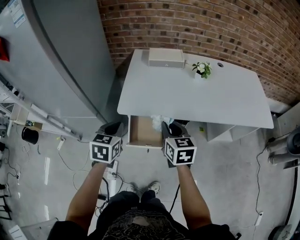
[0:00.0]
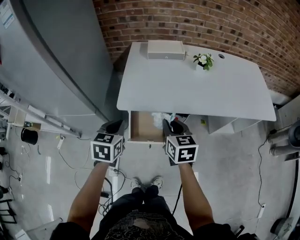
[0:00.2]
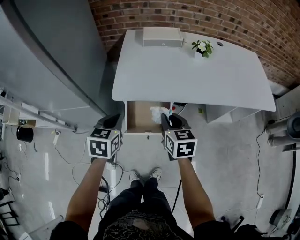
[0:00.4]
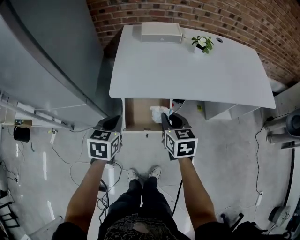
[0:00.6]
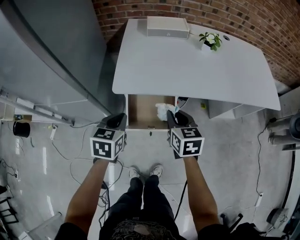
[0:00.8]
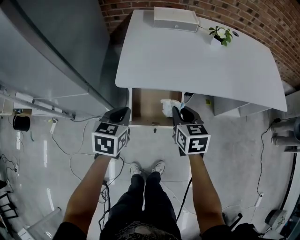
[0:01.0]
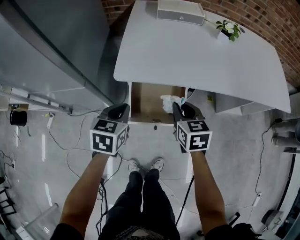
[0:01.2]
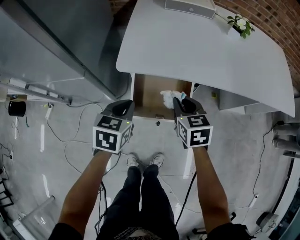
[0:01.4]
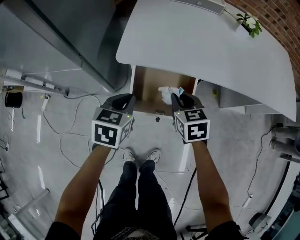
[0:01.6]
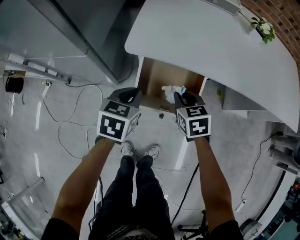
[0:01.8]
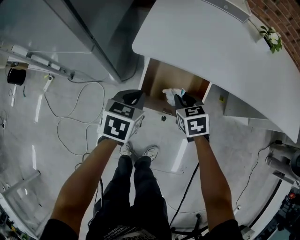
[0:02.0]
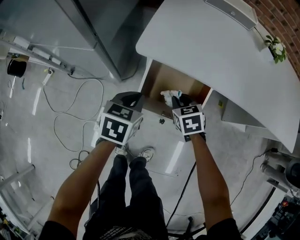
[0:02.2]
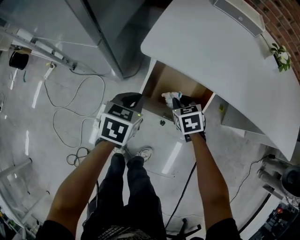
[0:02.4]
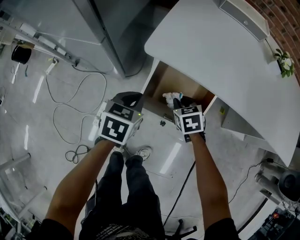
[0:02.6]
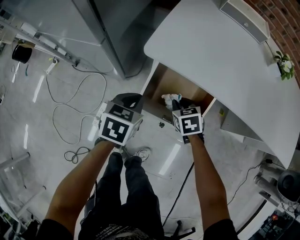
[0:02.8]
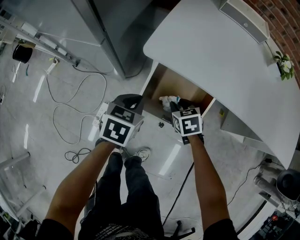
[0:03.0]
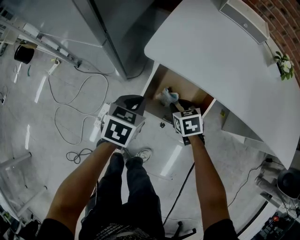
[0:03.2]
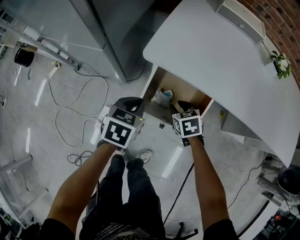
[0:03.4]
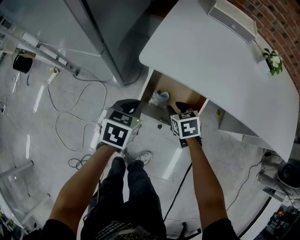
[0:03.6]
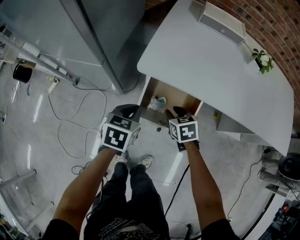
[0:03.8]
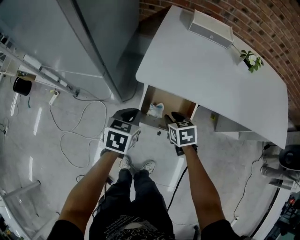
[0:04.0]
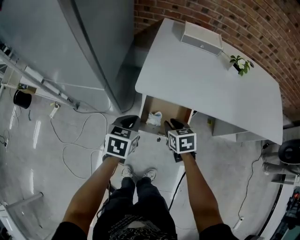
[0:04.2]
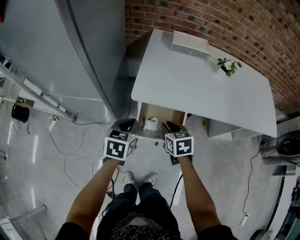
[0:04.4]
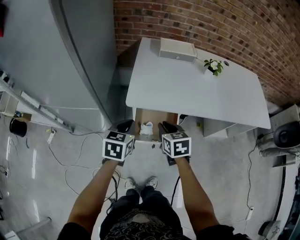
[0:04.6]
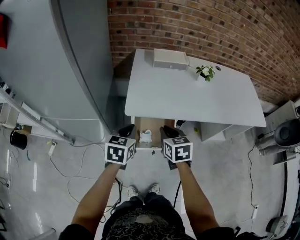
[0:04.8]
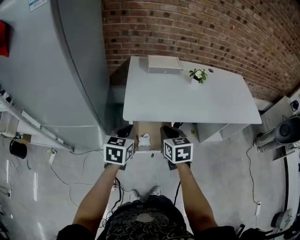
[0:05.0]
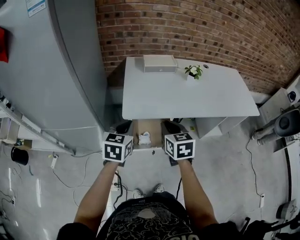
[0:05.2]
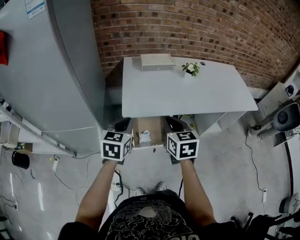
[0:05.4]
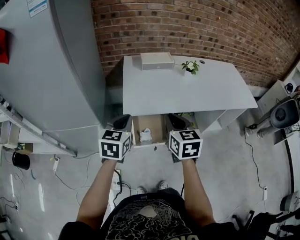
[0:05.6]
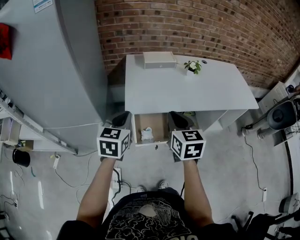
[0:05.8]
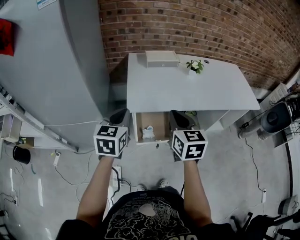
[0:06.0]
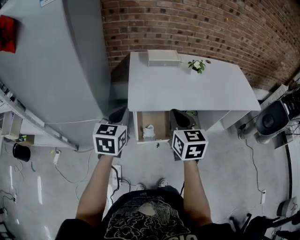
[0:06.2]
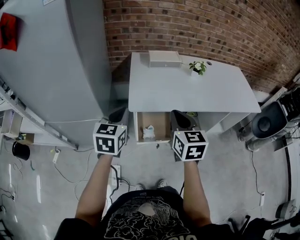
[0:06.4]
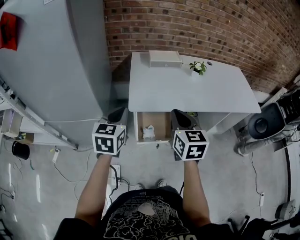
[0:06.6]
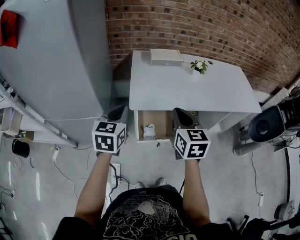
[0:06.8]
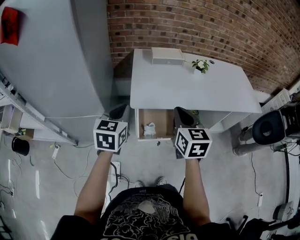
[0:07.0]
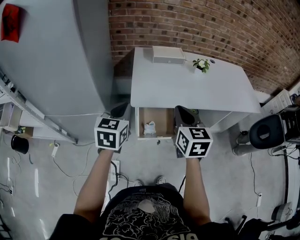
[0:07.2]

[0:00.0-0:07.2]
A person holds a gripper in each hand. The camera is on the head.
0:00.0 to 0:01.4: Both grippers move downward, approximately 20 cm.
0:01.4 to 0:02.8: The left gripper moves downward, approximately 10 cm; the right gripper goes roughly 15 cm downward, and turns by some 30 degrees.
0:02.8 to 0:04.4: The grippers both shift upward by about 20 cm. The right gripper swivels approximately 30 degrees.
0:04.4 to 0:05.8: Both grippers move upward, approximately 20 cm. The right gripper rotates approximately 30 degrees. The left gripper swivels roughly 20 degrees.
0:05.8 to 0:07.2: The grippers move only a little.

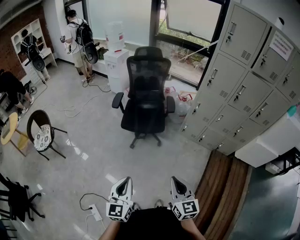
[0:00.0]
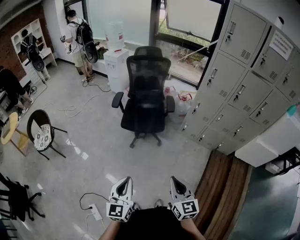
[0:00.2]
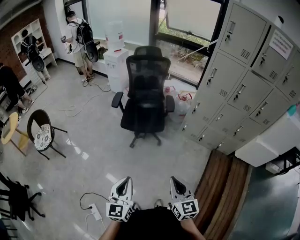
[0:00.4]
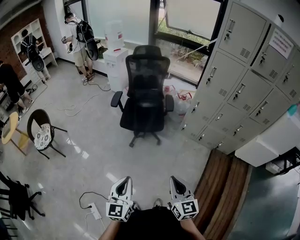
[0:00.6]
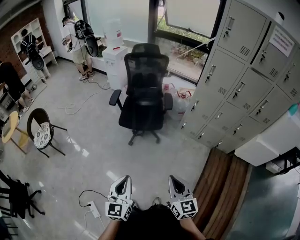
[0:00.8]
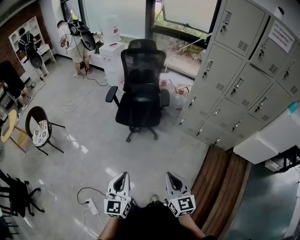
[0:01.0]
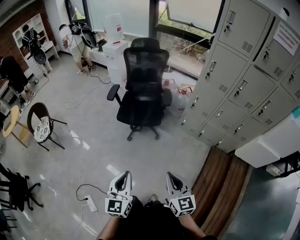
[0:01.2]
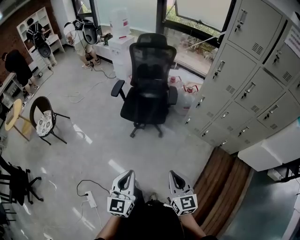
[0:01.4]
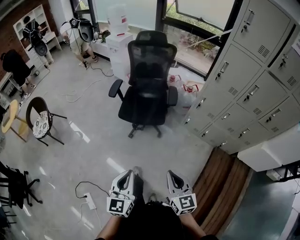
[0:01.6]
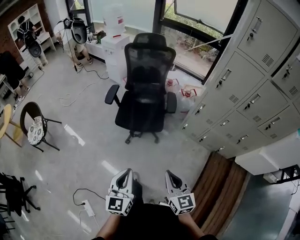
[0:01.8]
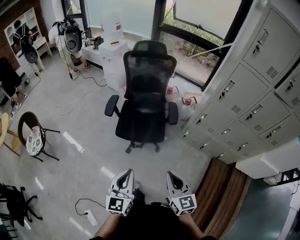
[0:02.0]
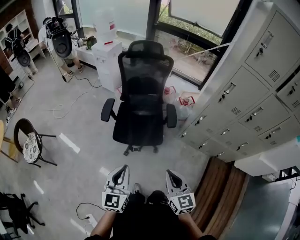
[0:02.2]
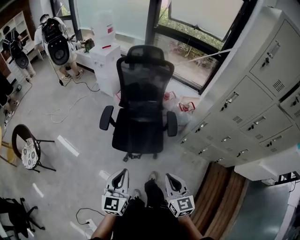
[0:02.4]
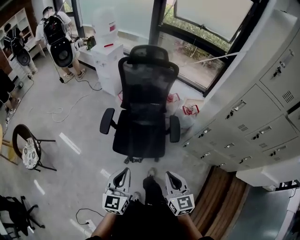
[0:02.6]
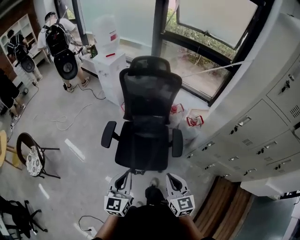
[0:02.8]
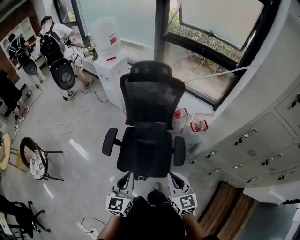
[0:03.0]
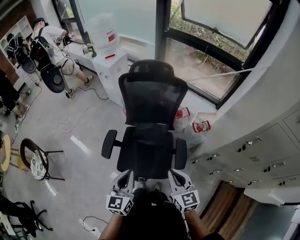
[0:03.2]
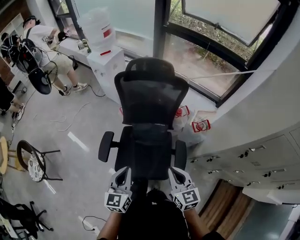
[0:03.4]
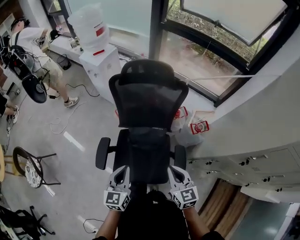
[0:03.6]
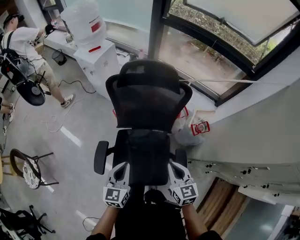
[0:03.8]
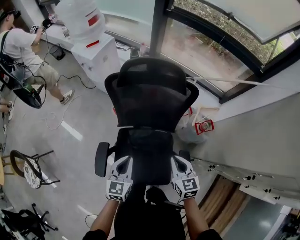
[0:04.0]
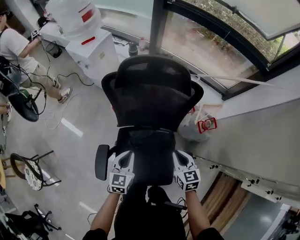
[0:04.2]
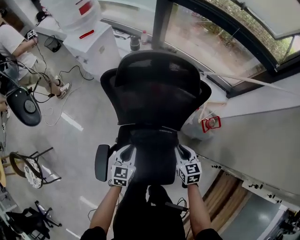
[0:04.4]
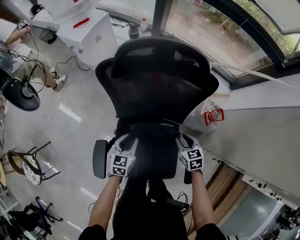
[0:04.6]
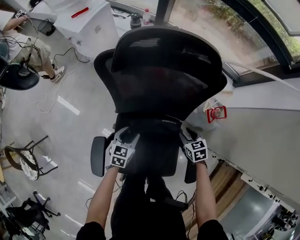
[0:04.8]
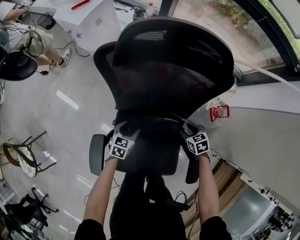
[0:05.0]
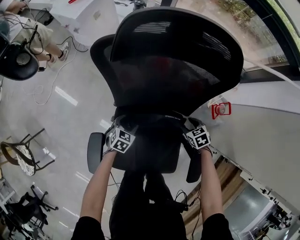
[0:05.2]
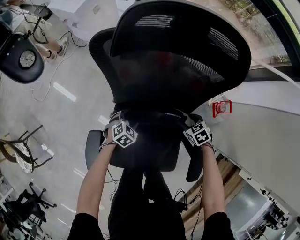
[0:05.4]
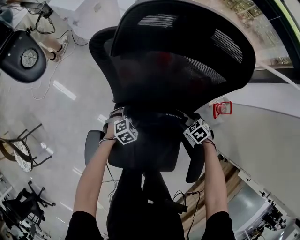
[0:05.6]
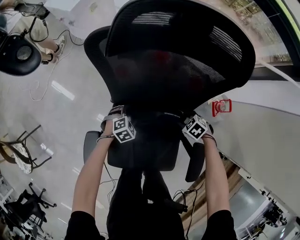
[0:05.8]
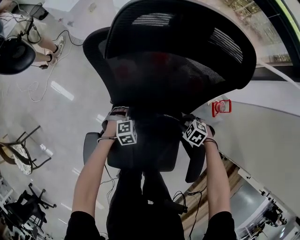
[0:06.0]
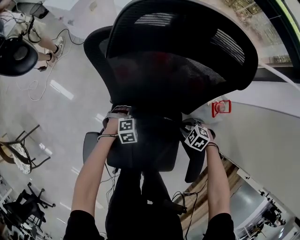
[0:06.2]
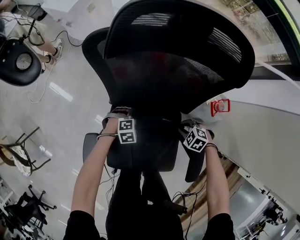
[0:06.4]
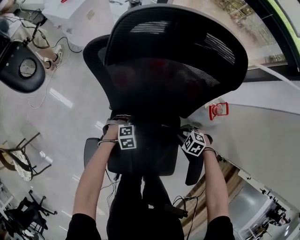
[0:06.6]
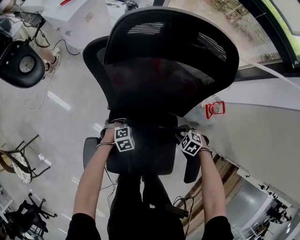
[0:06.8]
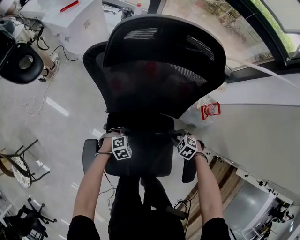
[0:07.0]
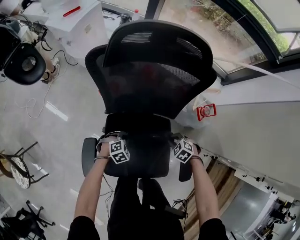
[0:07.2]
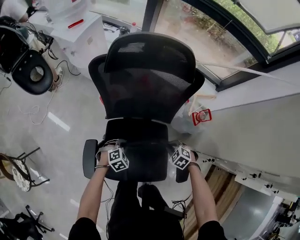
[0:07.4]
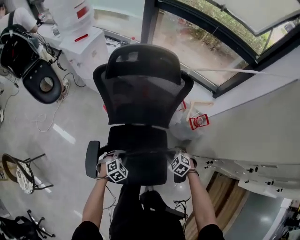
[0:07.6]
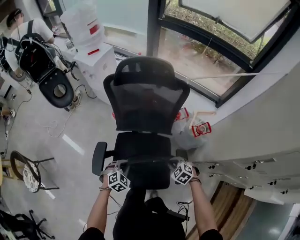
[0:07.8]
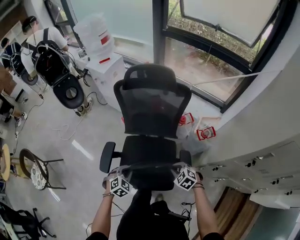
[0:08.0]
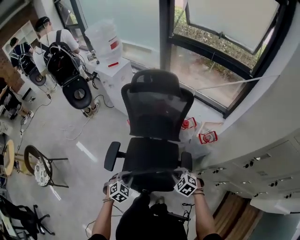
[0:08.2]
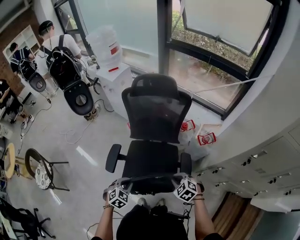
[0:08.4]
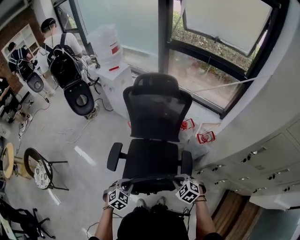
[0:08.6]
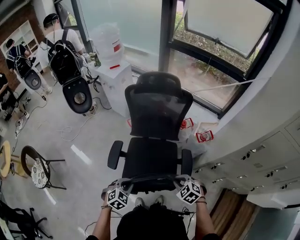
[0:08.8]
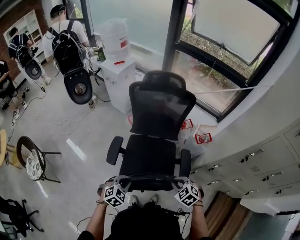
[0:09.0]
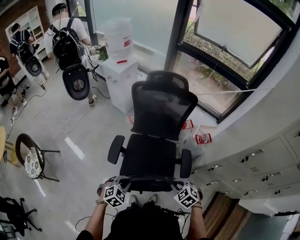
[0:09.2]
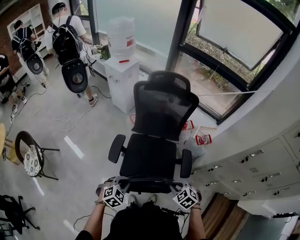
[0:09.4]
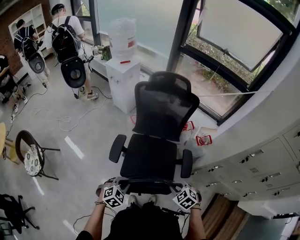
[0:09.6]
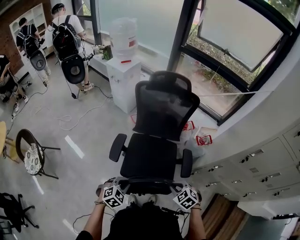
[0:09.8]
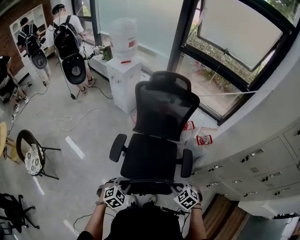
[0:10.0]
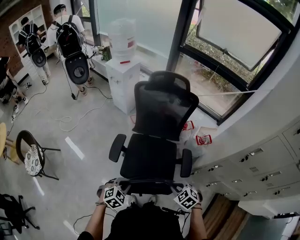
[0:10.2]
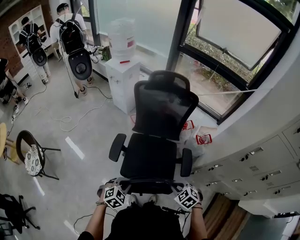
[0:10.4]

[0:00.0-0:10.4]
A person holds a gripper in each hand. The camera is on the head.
0:00.0 to 0:01.4: Both grippers move to the right, approximately 10 cm.
0:01.4 to 0:03.0: The pair of grippers is taken forward, roughly 50 cm.
0:03.0 to 0:04.4: The grippers both shift forward and downward by about 40 cm. The left gripper changes its angle by approximately 20 degrees; the right gripper turns by approximately 30 degrees.
0:04.4 to 0:06.0: The grippers both shift downward by roughly 25 cm. The left gripper points its fingers some 30 degrees further downward, and opens up, while the right gripper tilts its fingers approximately 30 degrees downward, and opens and closes again.
0:06.0 to 0:07.4: The left gripper ends up some 15 cm from where it was, and closes up; the right gripper moves some 10 cm.
0:07.4 to 0:09.0: The left gripper heads backward and upward, covering about 35 cm, and changes its angle by roughly 20 degrees. The right gripper heads upward and backward, covering roughly 35 cm.
0:09.0 to 0:10.4: There are only small adjustments of the grippers.

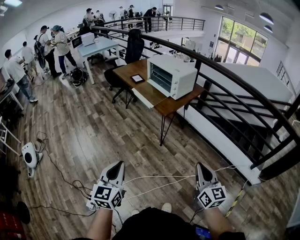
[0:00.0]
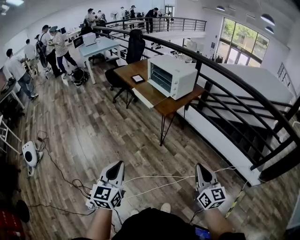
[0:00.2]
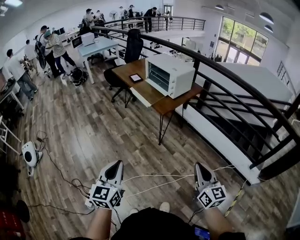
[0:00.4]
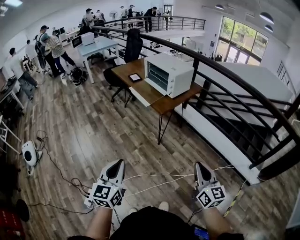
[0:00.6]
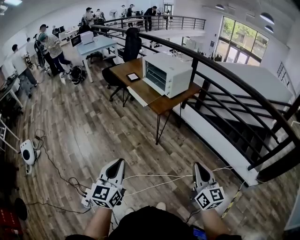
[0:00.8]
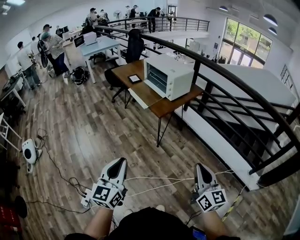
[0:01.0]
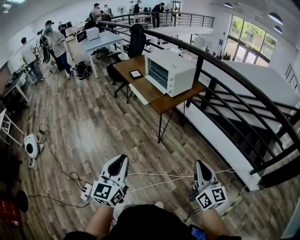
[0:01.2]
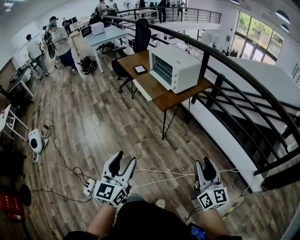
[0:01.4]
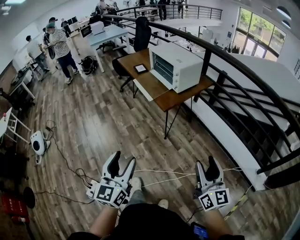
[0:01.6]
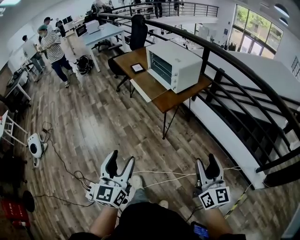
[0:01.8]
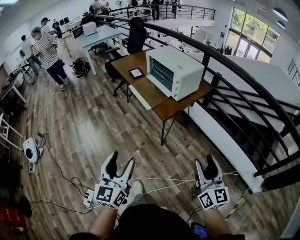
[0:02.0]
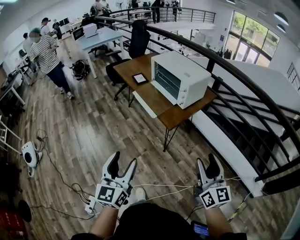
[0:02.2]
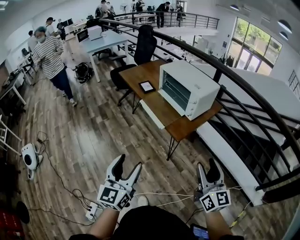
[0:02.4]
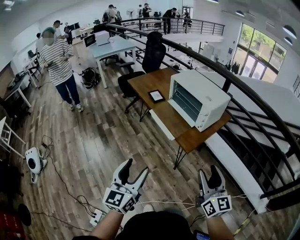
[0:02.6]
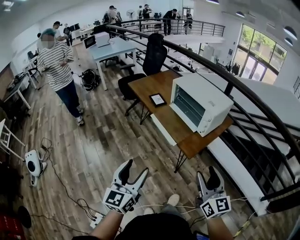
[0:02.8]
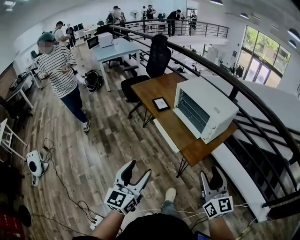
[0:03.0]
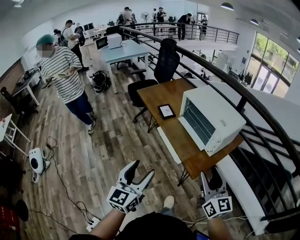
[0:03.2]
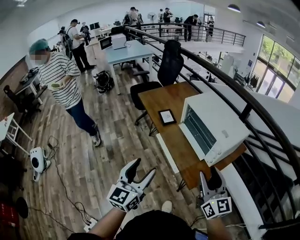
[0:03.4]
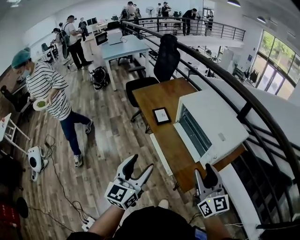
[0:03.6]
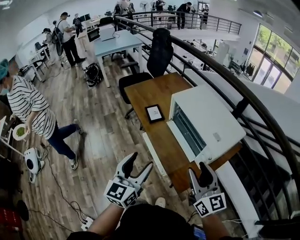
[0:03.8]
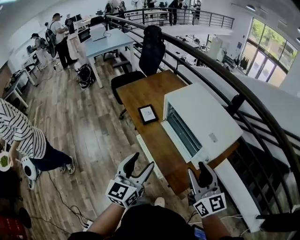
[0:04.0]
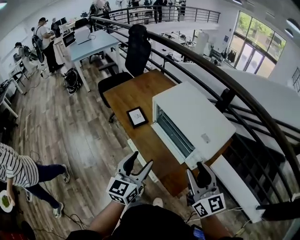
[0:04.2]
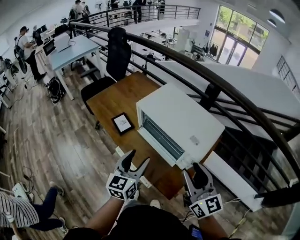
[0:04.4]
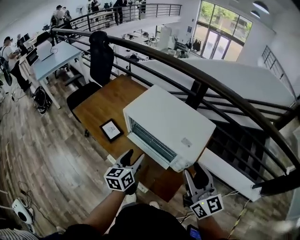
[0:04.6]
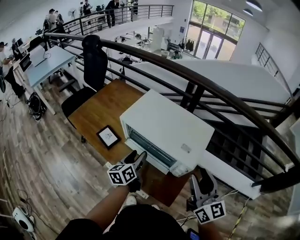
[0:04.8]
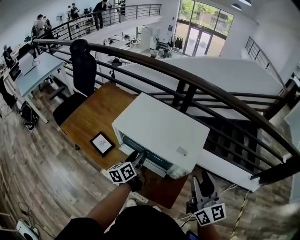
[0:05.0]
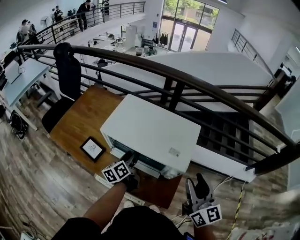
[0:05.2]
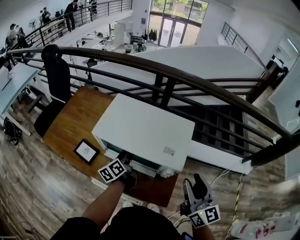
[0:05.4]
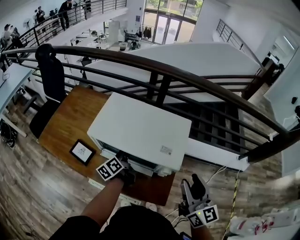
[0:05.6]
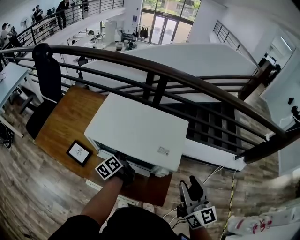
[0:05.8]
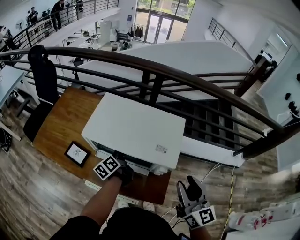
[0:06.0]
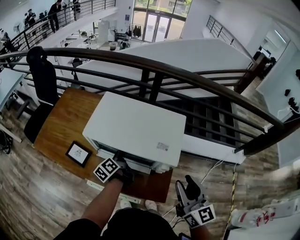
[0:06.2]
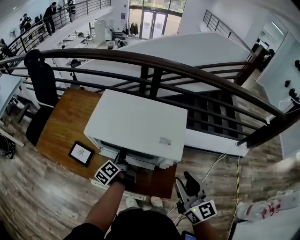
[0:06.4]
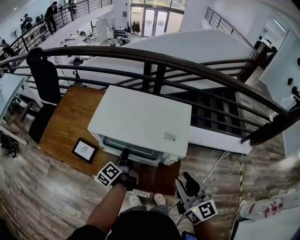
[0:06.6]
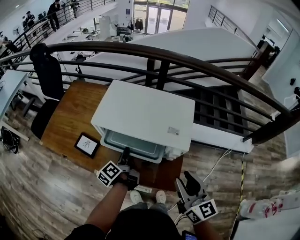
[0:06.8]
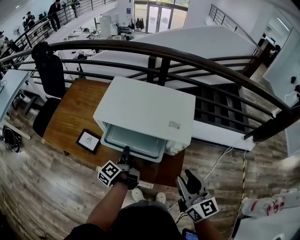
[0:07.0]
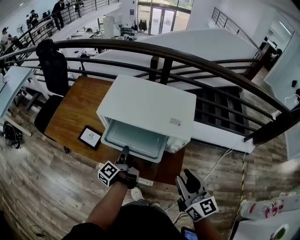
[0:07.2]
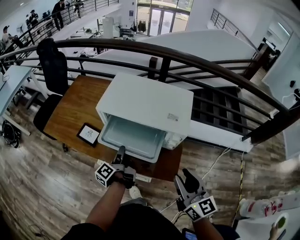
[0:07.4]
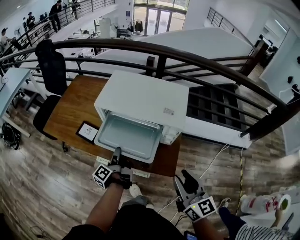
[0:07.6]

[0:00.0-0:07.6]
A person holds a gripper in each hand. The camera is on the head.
0:00.0 to 0:01.6: The left gripper heads to the right, covering roughly 10 cm, and opens its fingers, while the right gripper shifts about 10 cm to the right and forward, and opens.
0:01.6 to 0:03.0: Both grippers travel together forward and to the left, about 35 cm.
0:03.0 to 0:04.6: The right gripper is displaced forward by roughly 30 cm. The left gripper travels forward by about 40 cm, and rotates some 30 degrees.
0:04.6 to 0:06.0: The right gripper changes its angle by about 30 degrees. Meanwhile the left gripper moves forward and downward, approximately 15 cm, swivels approximately 40 degrees, and closes up.
0:06.0 to 0:07.6: Both grippers move backward and to the left, approximately 15 cm. The left gripper rotates roughly 30 degrees.
